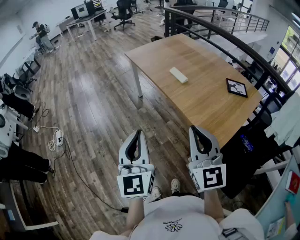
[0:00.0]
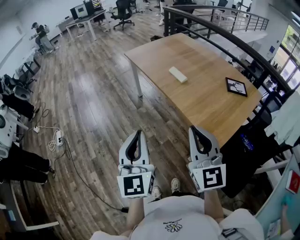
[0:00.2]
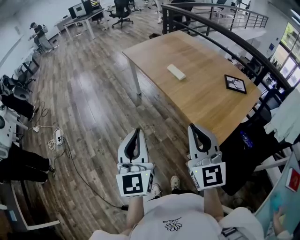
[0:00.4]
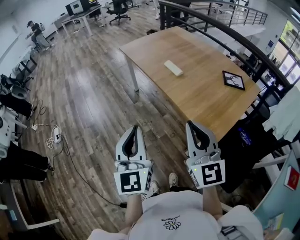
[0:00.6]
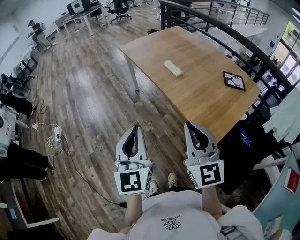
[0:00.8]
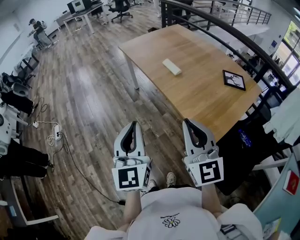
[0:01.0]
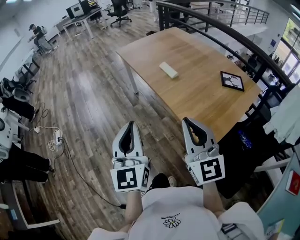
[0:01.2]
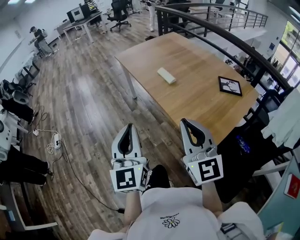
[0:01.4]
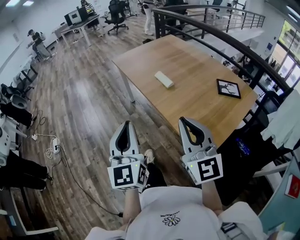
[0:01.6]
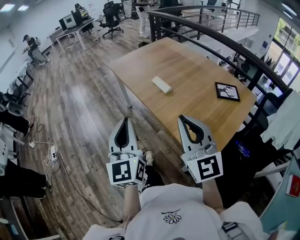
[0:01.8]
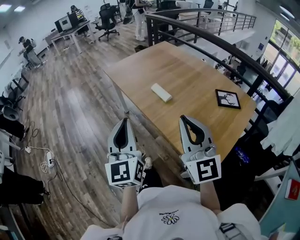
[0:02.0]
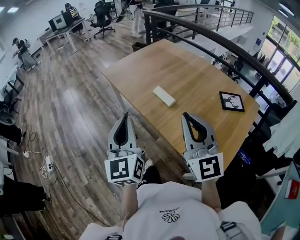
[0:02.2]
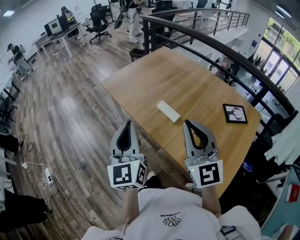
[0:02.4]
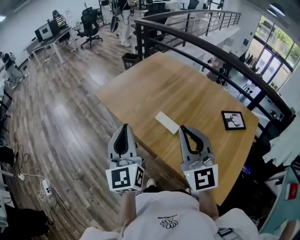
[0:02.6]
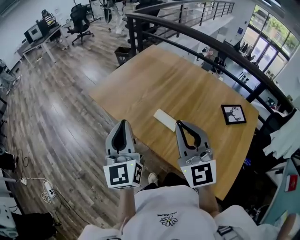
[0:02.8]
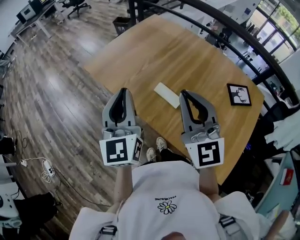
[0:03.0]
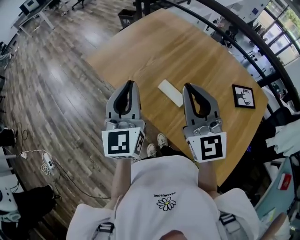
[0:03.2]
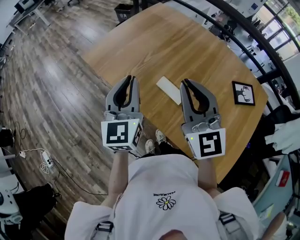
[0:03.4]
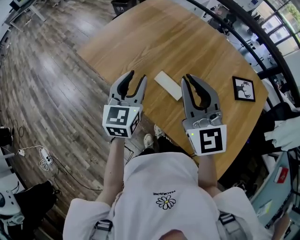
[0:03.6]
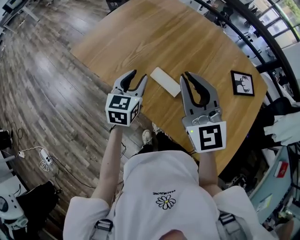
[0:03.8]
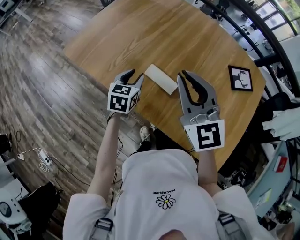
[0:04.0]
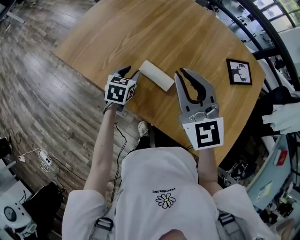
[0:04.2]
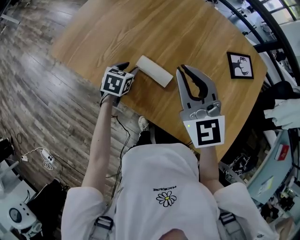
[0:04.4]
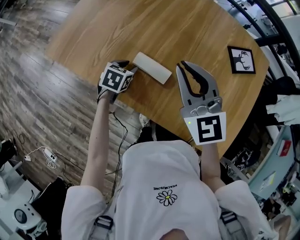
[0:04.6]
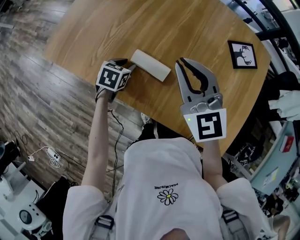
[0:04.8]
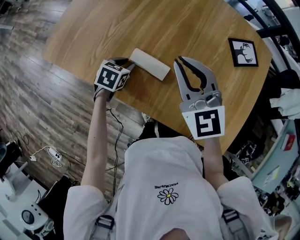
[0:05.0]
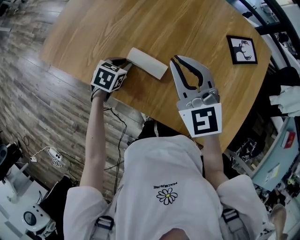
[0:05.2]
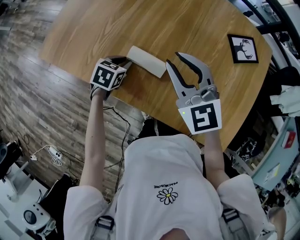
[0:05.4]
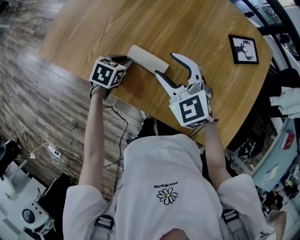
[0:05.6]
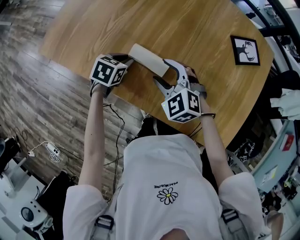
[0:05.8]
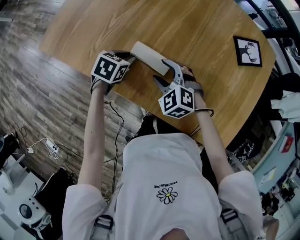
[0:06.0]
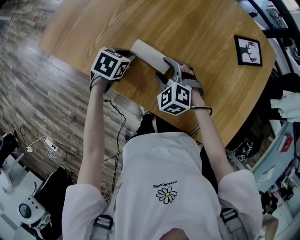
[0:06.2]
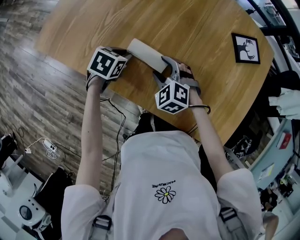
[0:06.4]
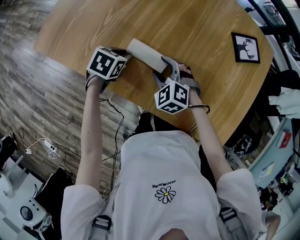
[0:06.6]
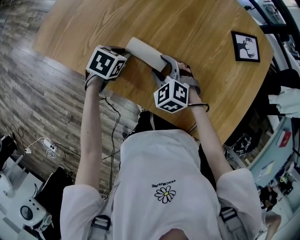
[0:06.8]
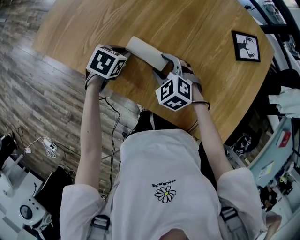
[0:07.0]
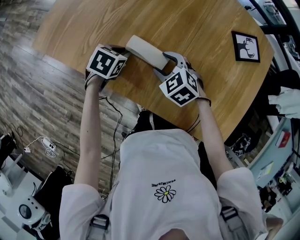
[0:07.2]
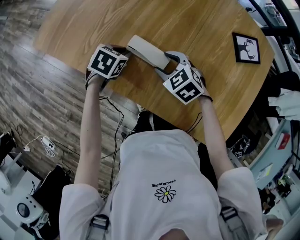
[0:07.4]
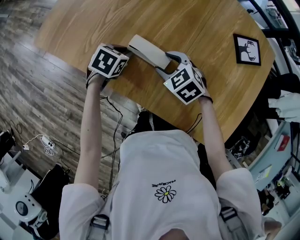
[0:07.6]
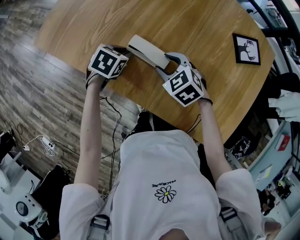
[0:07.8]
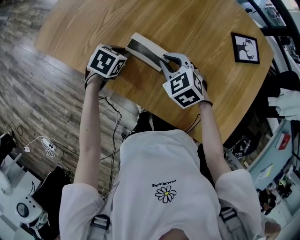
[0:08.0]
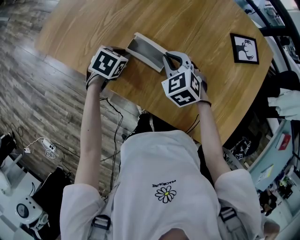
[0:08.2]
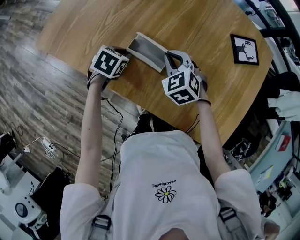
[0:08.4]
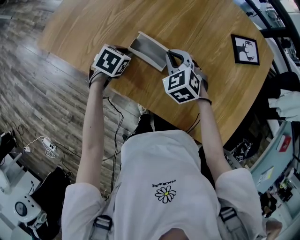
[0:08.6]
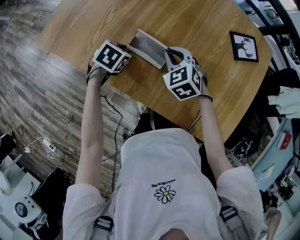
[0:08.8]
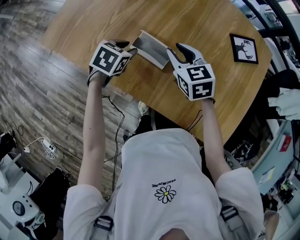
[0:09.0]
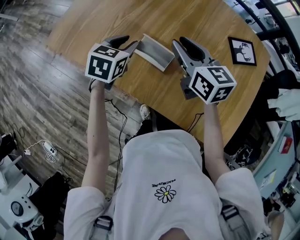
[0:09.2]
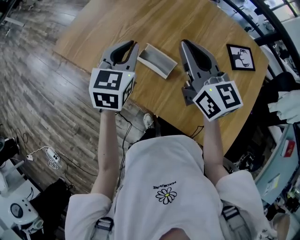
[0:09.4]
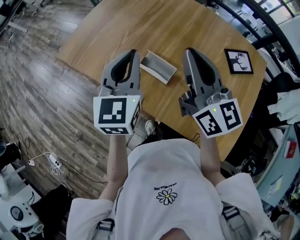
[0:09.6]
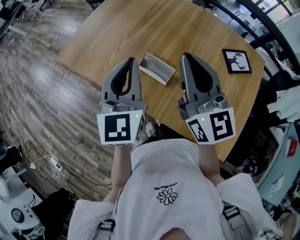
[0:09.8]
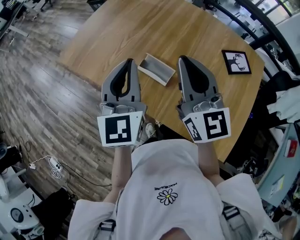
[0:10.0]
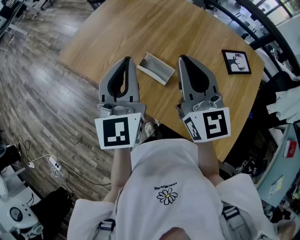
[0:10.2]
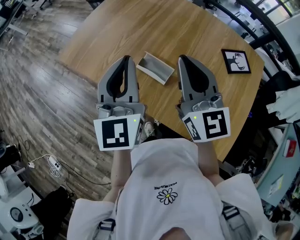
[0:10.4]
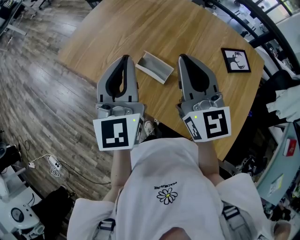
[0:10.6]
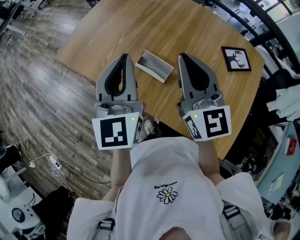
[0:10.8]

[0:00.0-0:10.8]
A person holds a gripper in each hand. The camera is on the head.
0:00.0 to 0:01.6: Both grippers move to the right and forward, some 10 cm.
0:01.6 to 0:03.0: Both grippers move forward, some 40 cm.
0:03.0 to 0:04.6: The right gripper is displaced downward by some 10 cm. Meanwhile the left gripper shifts approximately 35 cm downward, angles its fingers downward, by roughly 60 degrees, and opens.
0:04.6 to 0:06.2: The right gripper goes some 25 cm downward, tilts its fingers roughly 40 degrees downward, and opens its fingers.
0:06.2 to 0:07.8: The right gripper rotates approximately 20 degrees.
0:07.8 to 0:09.2: The grippers both shift upward by about 15 cm. The right gripper angles its fingers upward, by roughly 40 degrees, and closes; the left gripper turns by approximately 20 degrees.
0:09.2 to 0:10.8: Both grippers travel together upward and backward, some 20 cm. The left gripper points its fingers approximately 40 degrees further upward, and closes its fingers. The right gripper rotates approximately 30 degrees, and closes up.

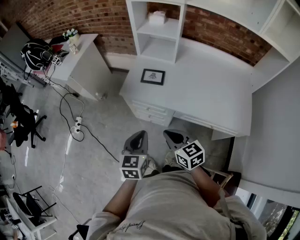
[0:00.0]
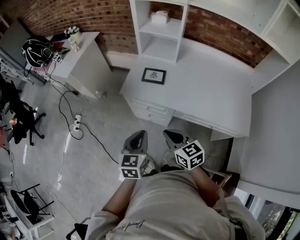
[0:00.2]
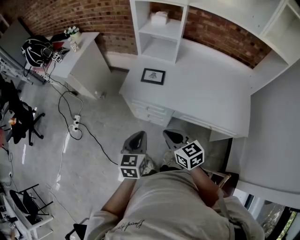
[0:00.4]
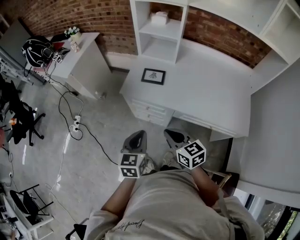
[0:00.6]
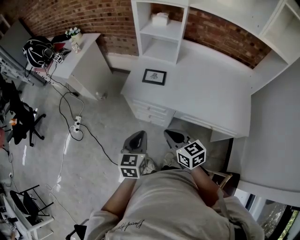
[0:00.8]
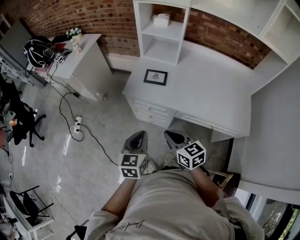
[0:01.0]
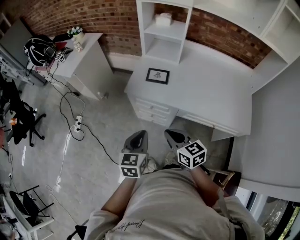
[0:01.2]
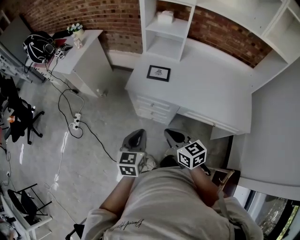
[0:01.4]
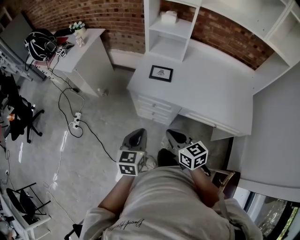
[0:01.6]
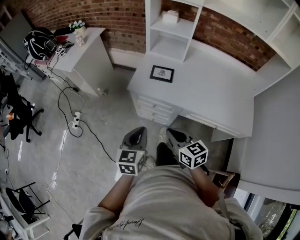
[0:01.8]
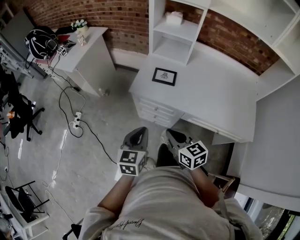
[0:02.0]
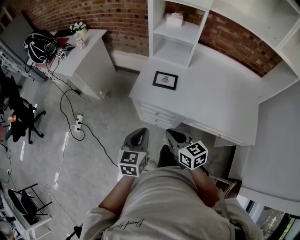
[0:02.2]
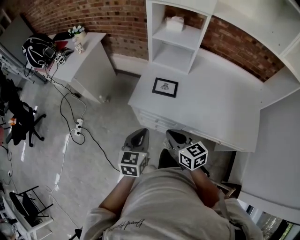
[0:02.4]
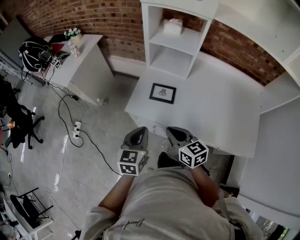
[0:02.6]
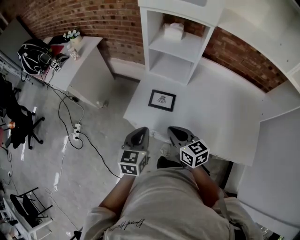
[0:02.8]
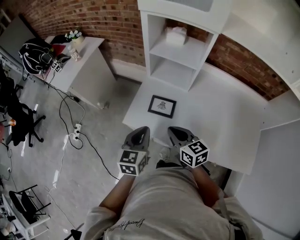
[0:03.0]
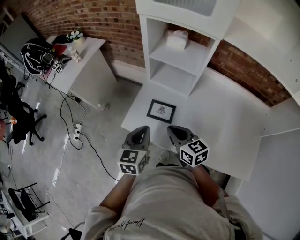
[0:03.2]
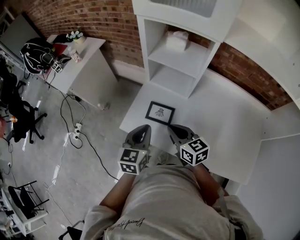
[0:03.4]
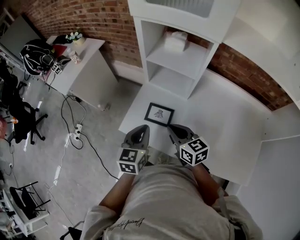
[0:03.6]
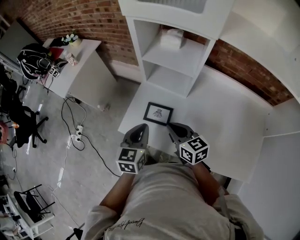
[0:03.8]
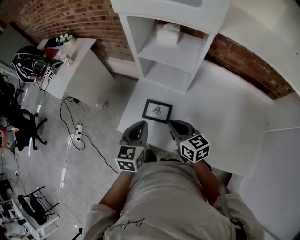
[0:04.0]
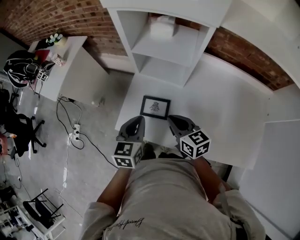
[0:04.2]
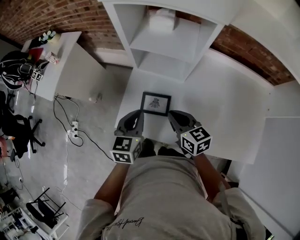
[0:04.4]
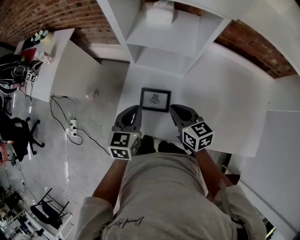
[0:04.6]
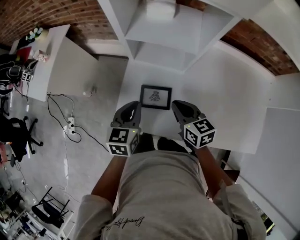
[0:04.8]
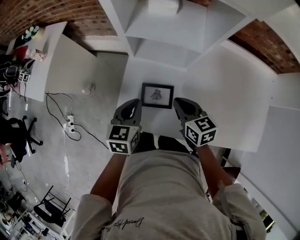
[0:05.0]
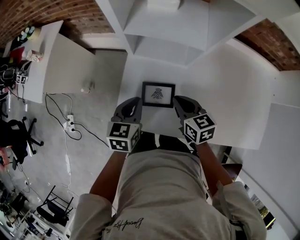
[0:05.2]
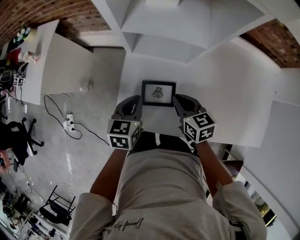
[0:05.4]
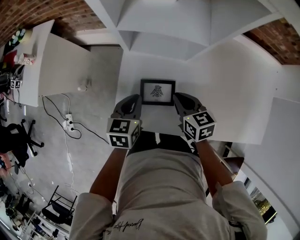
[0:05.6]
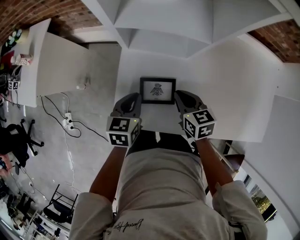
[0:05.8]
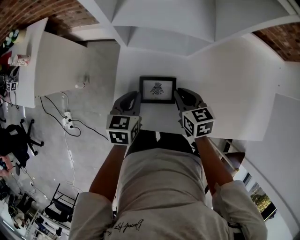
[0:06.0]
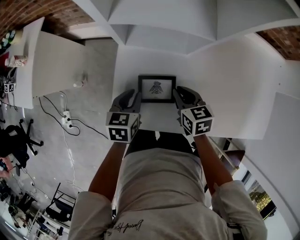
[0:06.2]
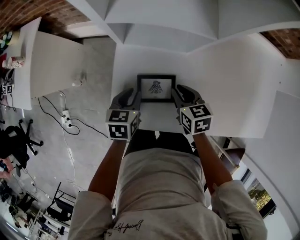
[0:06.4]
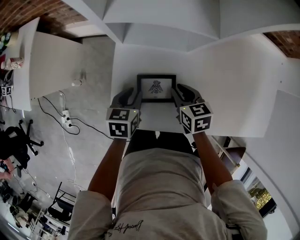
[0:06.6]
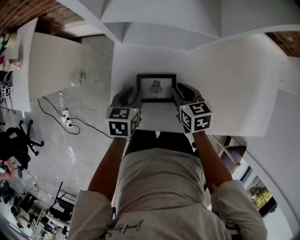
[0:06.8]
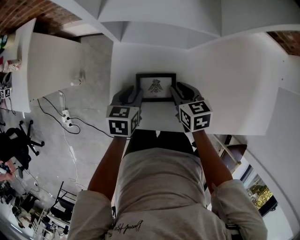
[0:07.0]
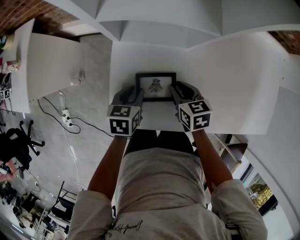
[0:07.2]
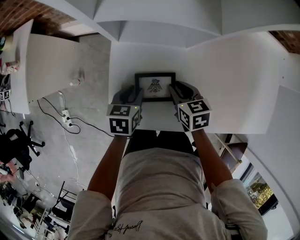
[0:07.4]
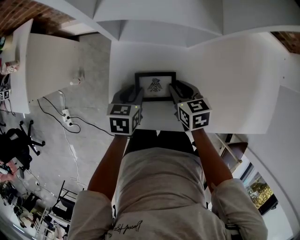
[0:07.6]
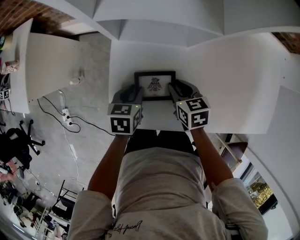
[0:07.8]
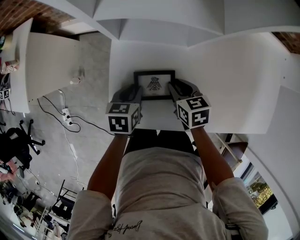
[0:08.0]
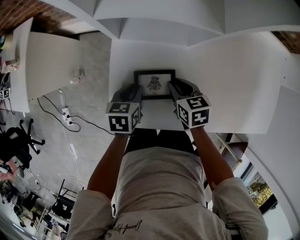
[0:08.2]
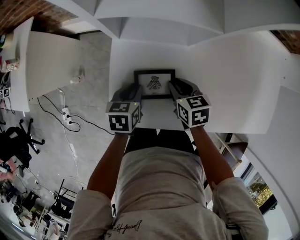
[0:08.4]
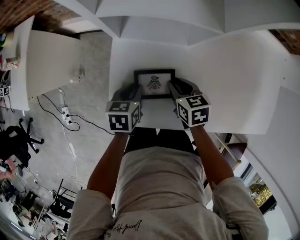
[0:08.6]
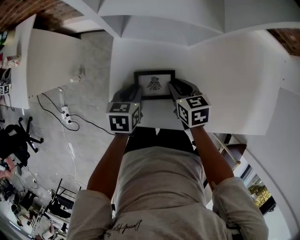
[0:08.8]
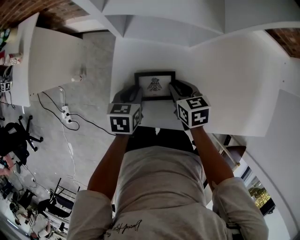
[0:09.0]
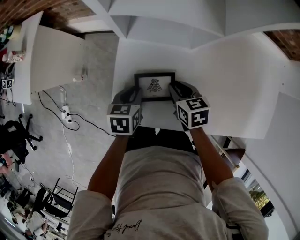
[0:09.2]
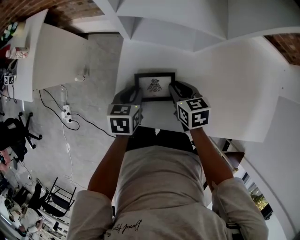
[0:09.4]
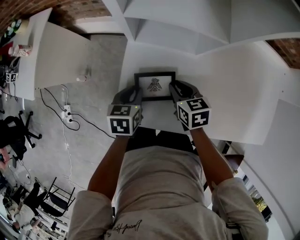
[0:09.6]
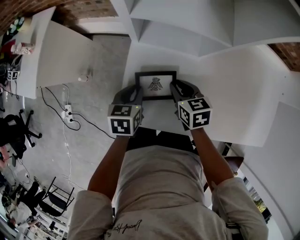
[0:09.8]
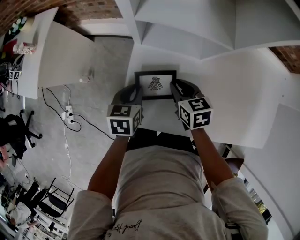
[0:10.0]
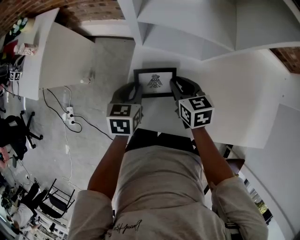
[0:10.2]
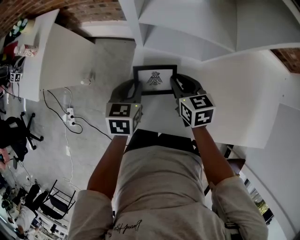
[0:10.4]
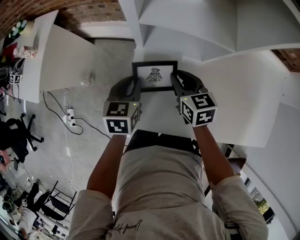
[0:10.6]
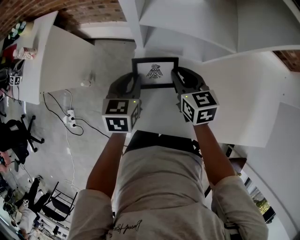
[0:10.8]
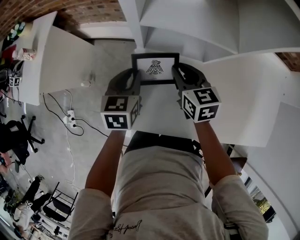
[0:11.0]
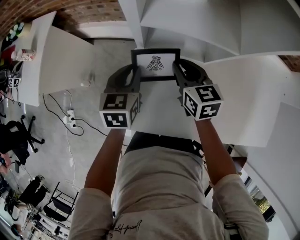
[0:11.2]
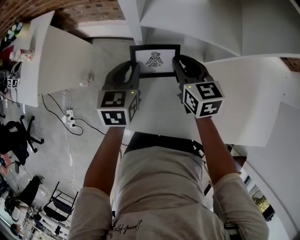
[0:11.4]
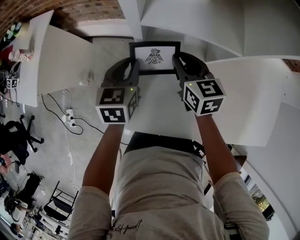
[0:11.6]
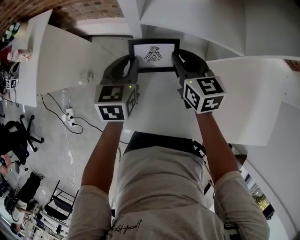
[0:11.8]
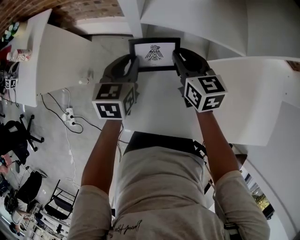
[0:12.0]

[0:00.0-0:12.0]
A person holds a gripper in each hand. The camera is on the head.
0:00.0 to 0:01.6: The grippers both shift to the left by about 5 cm.
0:01.6 to 0:03.0: Both grippers travel together forward, roughly 30 cm.
0:03.0 to 0:04.4: The left gripper moves forward, about 15 cm. The right gripper travels forward and to the right by about 15 cm.
0:04.4 to 0:06.0: The grippers both shift downward and forward by approximately 15 cm. The right gripper rotates some 20 degrees.
0:06.0 to 0:07.6: Both grippers travel together downward, some 5 cm. The left gripper opens its fingers.
0:07.6 to 0:09.0: The grippers move only a little.
0:09.0 to 0:10.4: The left gripper shifts about 10 cm upward, to the left and forward. The right gripper heads upward, forward and to the left, covering roughly 10 cm.
0:10.4 to 0:12.0: Both grippers move forward, about 10 cm.

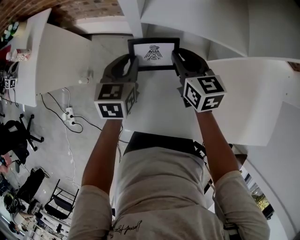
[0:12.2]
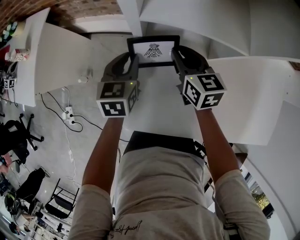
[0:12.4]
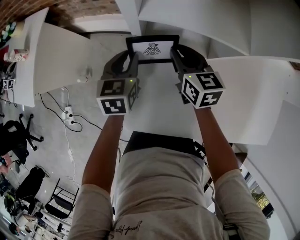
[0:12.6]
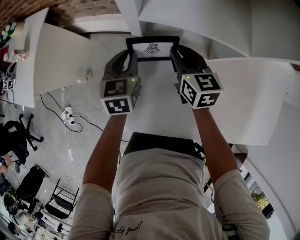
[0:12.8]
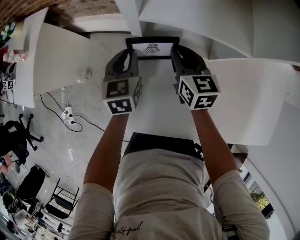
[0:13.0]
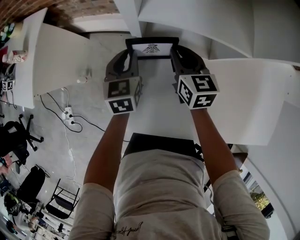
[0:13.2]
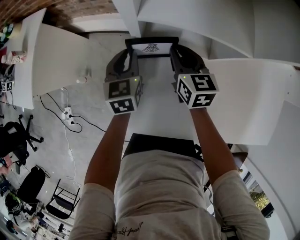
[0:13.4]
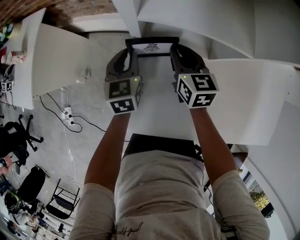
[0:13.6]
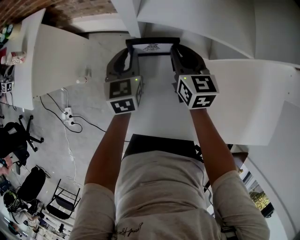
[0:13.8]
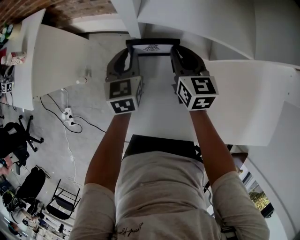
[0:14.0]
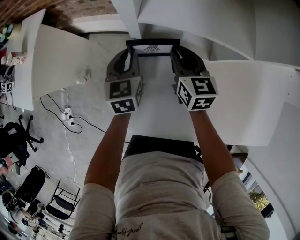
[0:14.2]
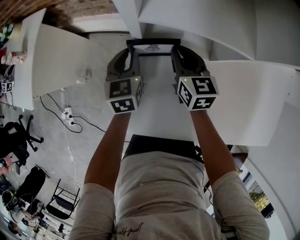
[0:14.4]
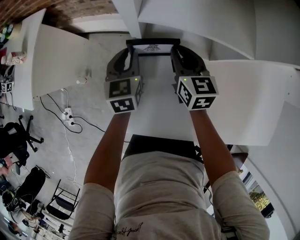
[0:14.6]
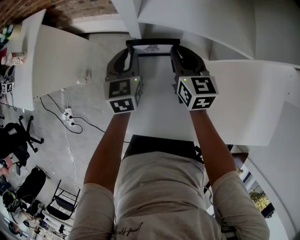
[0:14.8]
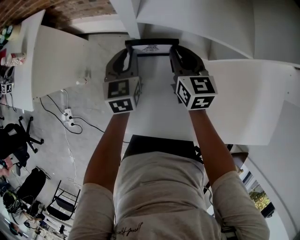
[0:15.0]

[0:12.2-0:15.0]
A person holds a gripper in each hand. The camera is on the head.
0:12.2 to 0:13.6: The grippers make only small movements.
0:13.6 to 0:15.0: Both grippers stay put.
